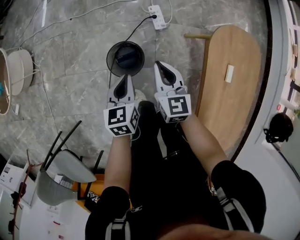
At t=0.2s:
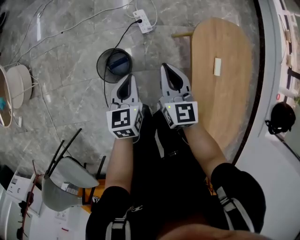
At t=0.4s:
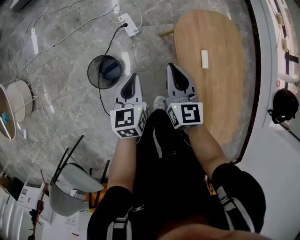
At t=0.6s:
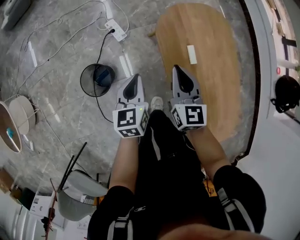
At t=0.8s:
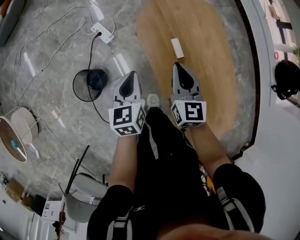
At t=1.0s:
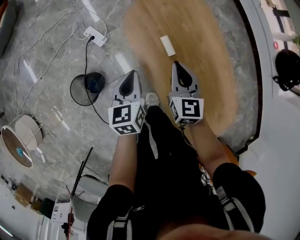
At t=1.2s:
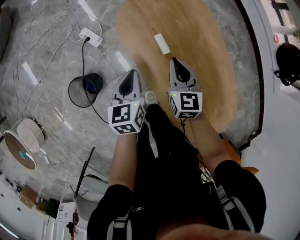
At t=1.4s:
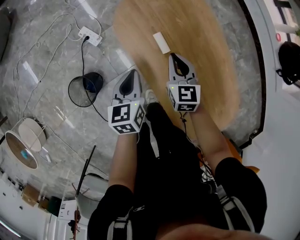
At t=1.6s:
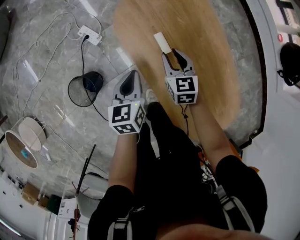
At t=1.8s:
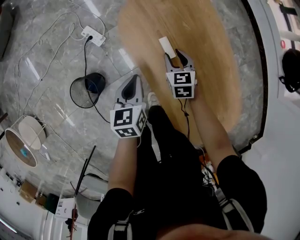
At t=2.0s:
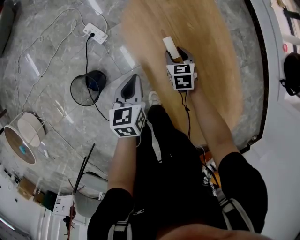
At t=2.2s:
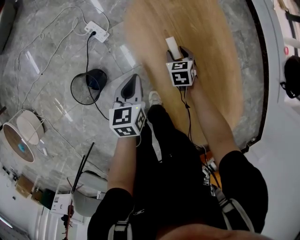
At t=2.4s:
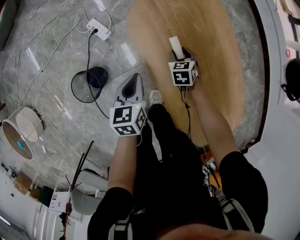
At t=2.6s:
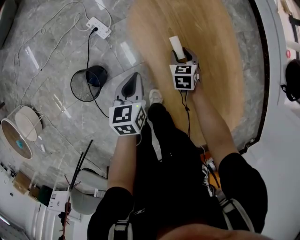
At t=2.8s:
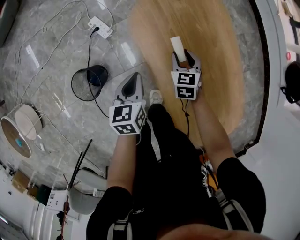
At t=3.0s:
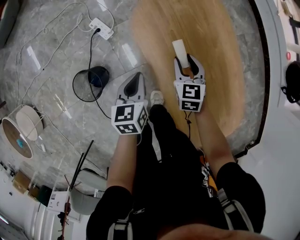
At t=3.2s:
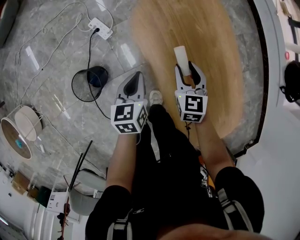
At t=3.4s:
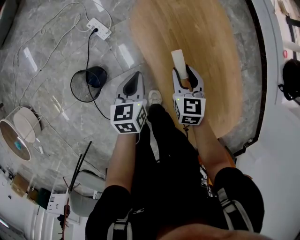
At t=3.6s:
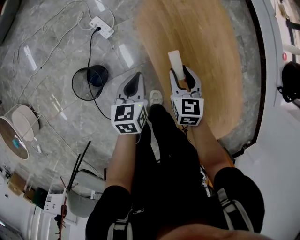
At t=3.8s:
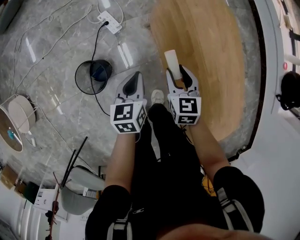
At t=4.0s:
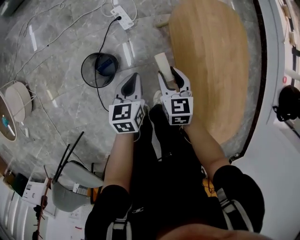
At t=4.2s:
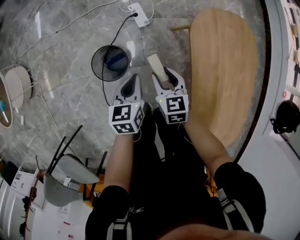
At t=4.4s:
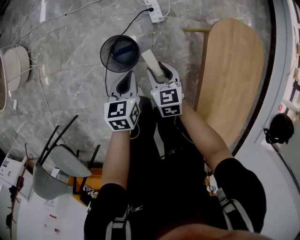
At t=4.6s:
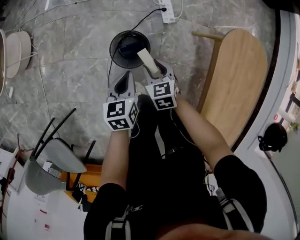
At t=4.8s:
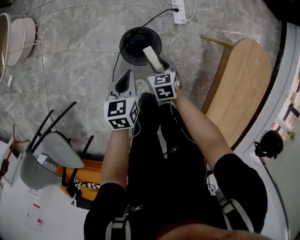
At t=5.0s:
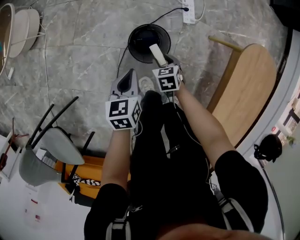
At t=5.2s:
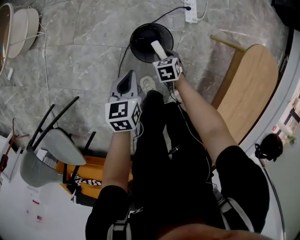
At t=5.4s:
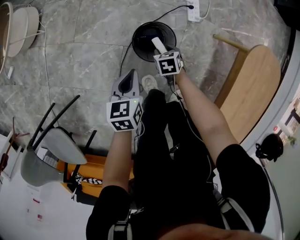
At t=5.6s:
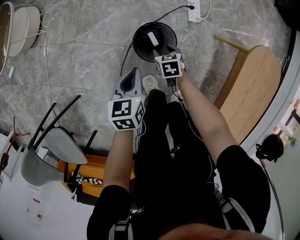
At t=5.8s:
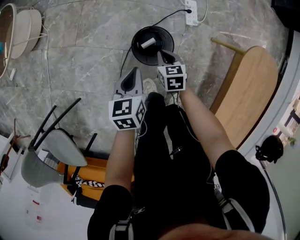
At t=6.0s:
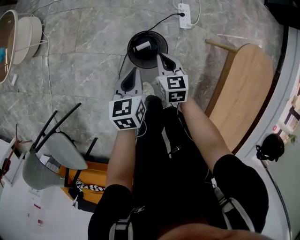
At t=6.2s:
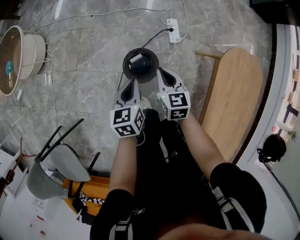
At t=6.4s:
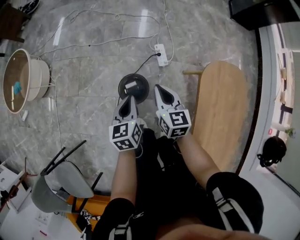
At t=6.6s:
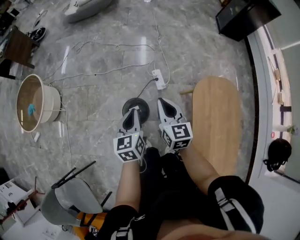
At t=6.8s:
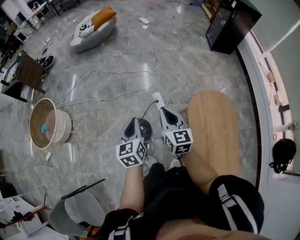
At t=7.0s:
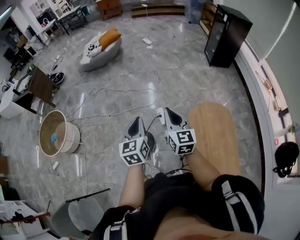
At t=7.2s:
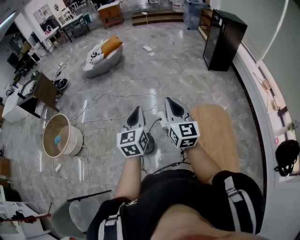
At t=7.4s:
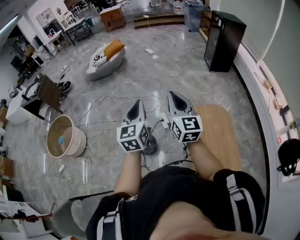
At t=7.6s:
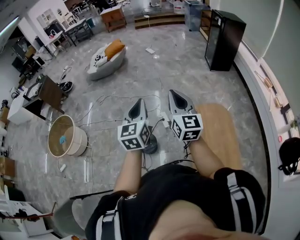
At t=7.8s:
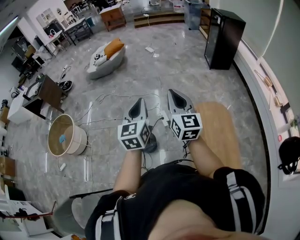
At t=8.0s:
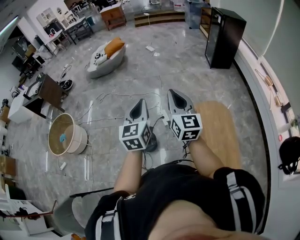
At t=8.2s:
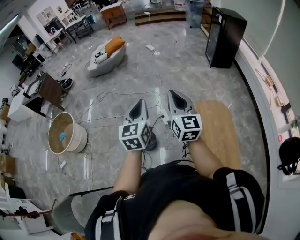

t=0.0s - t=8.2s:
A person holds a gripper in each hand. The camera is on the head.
t=0.0s - t=1.6s: Both grippers are carried about 40 cm. The right gripper turns by some 30 degrees, and opens up, while the left gripper changes its angle by some 30 degrees.
t=1.6s - t=3.2s: The right gripper travels downward and back again, about 10 cm each way.
t=3.2s - t=5.0s: The pair of grippers is taken about 50 cm. The left gripper rotates roughly 40 degrees. The right gripper changes its angle by about 50 degrees.
t=5.0s - t=6.6s: The right gripper shifts approximately 50 cm upward, points its fingers some 40 degrees further upward, and closes, while the left gripper travels upward by roughly 30 cm.
t=6.6s - t=8.2s: Both grippers move upward and to the right, approximately 35 cm. The right gripper swivels approximately 30 degrees, while the left gripper changes its angle by about 30 degrees.

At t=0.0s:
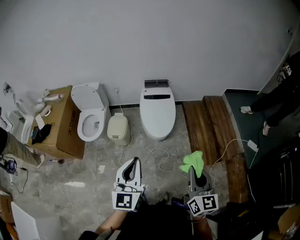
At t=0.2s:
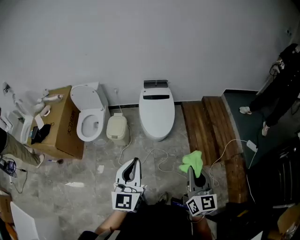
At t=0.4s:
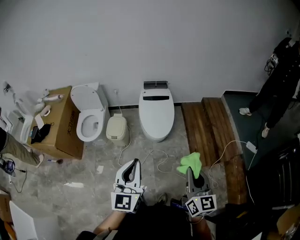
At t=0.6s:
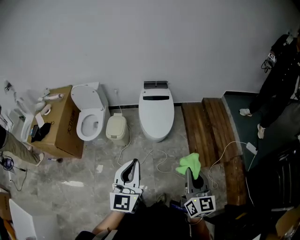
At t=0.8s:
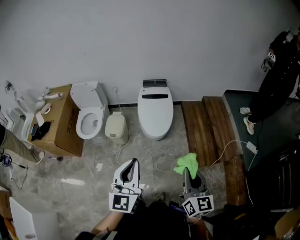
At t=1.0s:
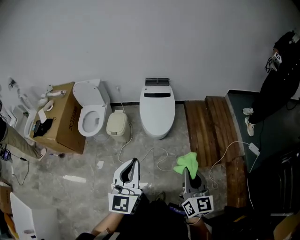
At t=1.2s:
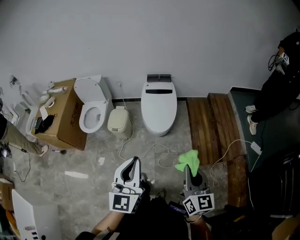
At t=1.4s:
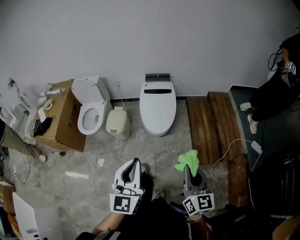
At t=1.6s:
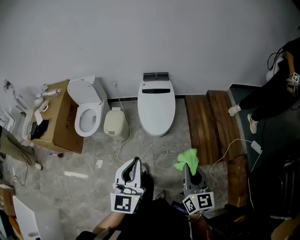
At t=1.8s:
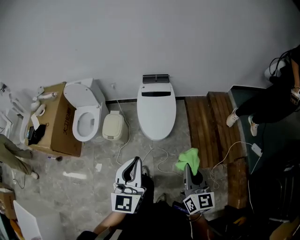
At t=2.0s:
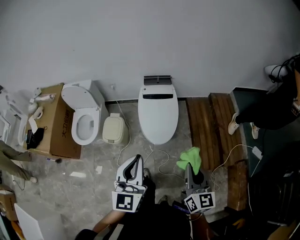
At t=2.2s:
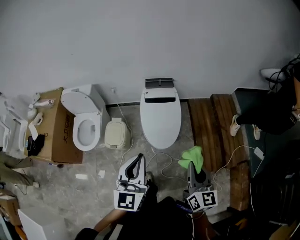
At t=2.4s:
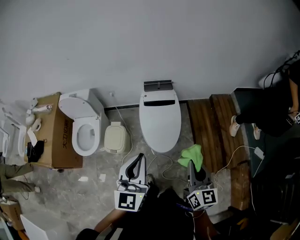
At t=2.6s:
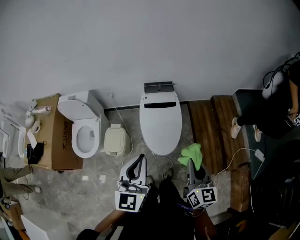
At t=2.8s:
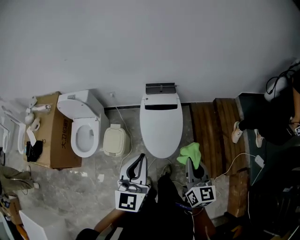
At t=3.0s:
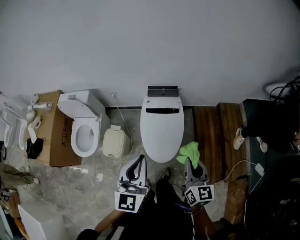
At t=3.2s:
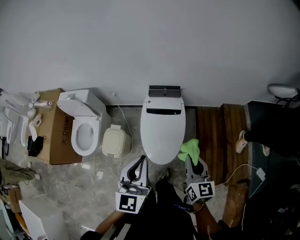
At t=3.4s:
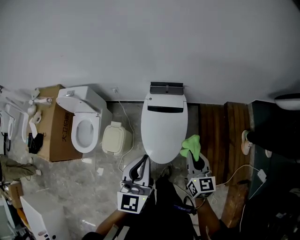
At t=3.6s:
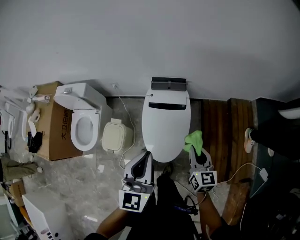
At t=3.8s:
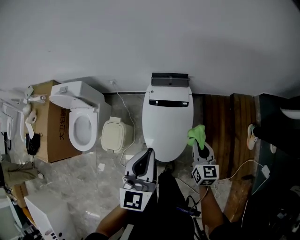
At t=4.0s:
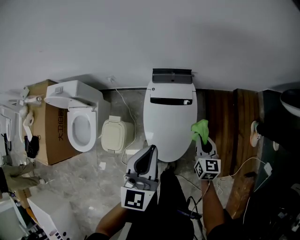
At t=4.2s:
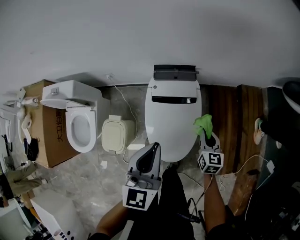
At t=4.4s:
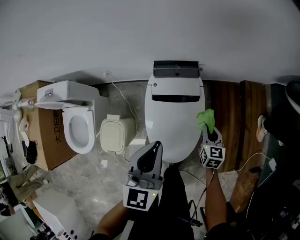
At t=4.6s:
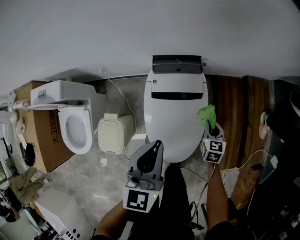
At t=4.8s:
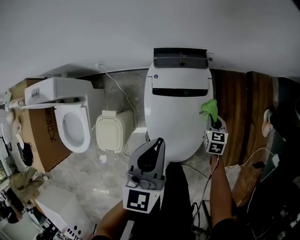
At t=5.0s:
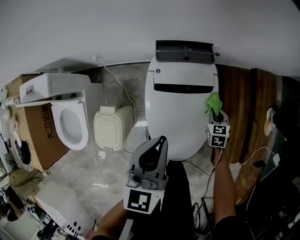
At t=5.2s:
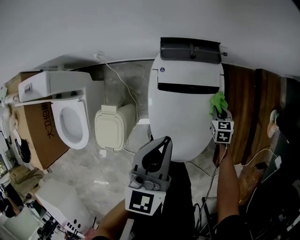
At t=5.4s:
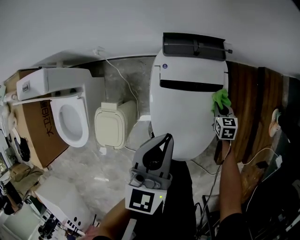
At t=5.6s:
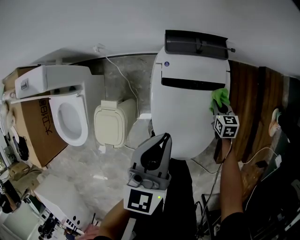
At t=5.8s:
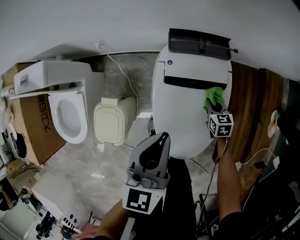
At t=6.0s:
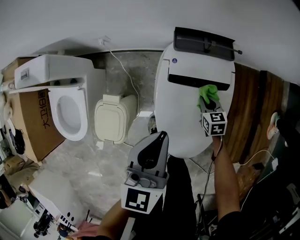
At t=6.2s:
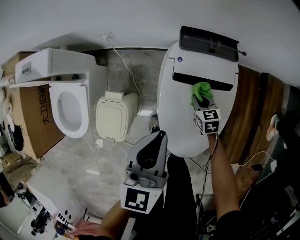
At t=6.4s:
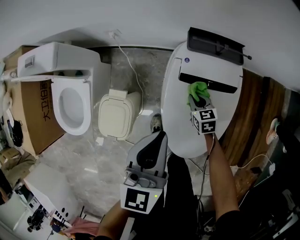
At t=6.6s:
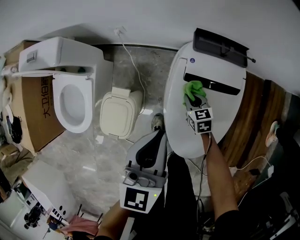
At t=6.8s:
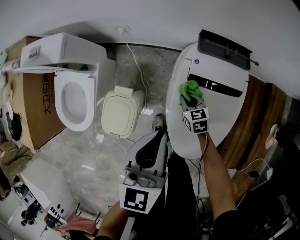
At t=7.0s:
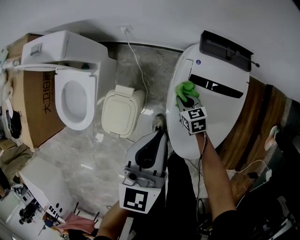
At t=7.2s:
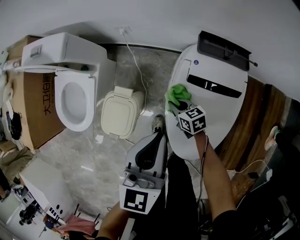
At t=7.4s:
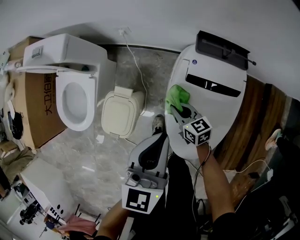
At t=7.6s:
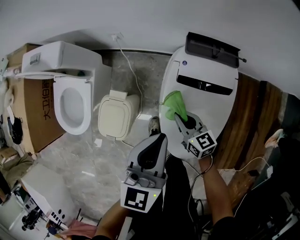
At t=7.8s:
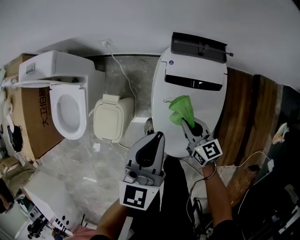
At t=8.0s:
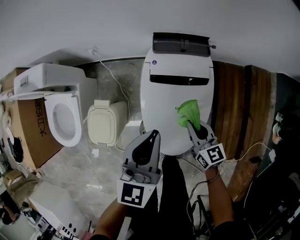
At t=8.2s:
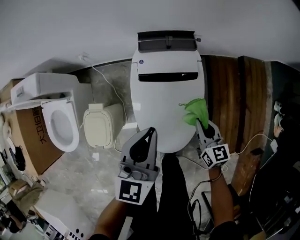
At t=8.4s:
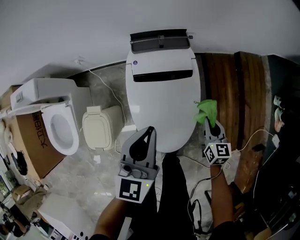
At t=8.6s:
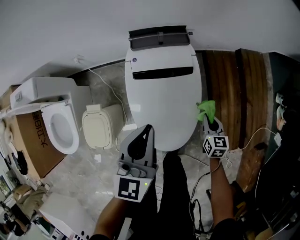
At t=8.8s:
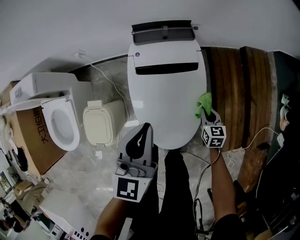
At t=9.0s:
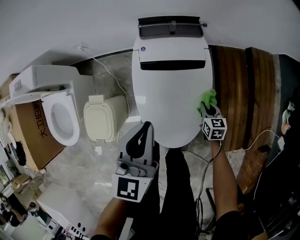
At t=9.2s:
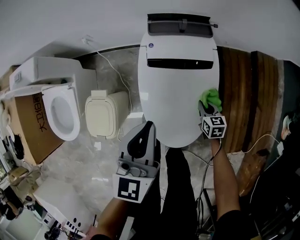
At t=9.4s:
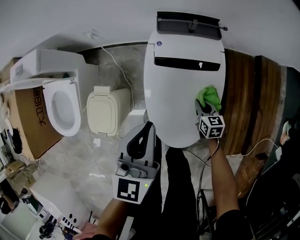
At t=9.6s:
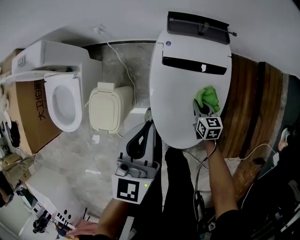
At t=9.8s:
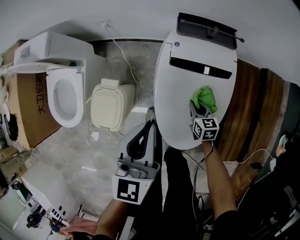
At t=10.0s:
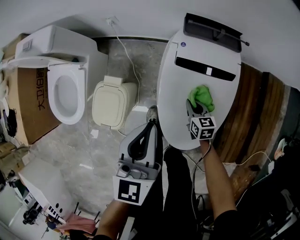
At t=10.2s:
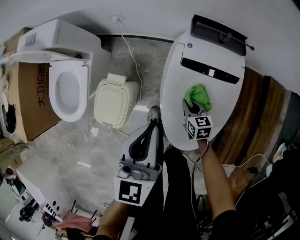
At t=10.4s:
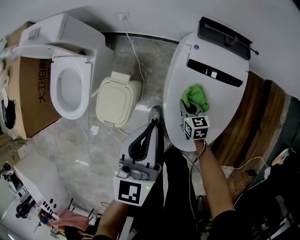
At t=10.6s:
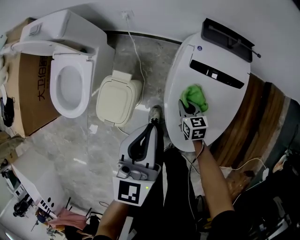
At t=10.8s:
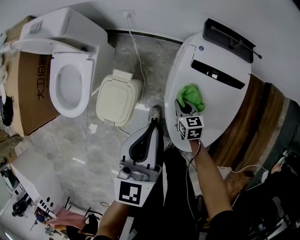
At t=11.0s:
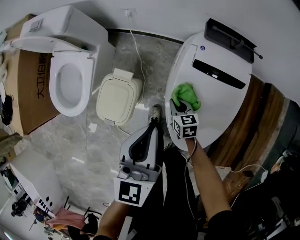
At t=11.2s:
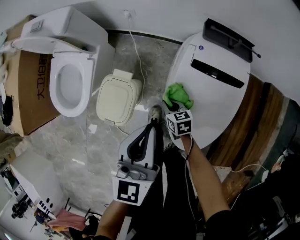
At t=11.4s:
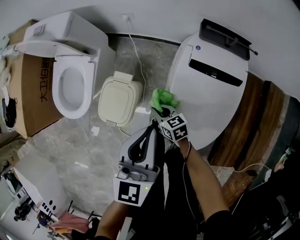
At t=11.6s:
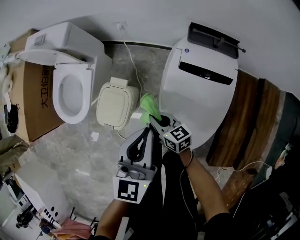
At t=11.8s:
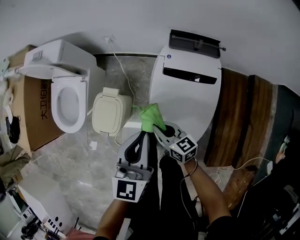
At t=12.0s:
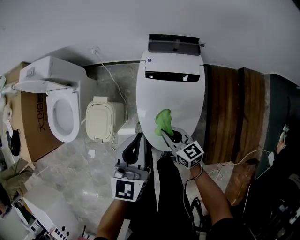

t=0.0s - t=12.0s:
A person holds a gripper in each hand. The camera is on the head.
t=0.0s - t=1.6s: The left gripper travels to the right and forward by roughly 10 cm, while the right gripper heads forward, covering some 5 cm.
t=1.6s - t=3.0s: Both grippers travel together forward, about 40 cm.
t=3.0s - t=4.4s: The right gripper heads downward and forward, covering roughly 50 cm, and rotates some 30 degrees. The left gripper goes about 30 cm forward and downward.
t=4.4s - t=6.0s: The right gripper goes about 25 cm downward and to the left, and swivels some 20 degrees. The left gripper is displaced downward and to the left by approximately 15 cm.
t=6.0s - t=7.6s: The right gripper shifts about 20 cm to the left and upward, and rotates about 30 degrees.
t=7.6s - t=9.0s: The right gripper moves approximately 30 cm, and rotates some 40 degrees. The left gripper changes place by some 10 cm.
t=9.0s - t=10.4s: The left gripper goes some 15 cm to the left; the right gripper shifts approximately 25 cm to the left, and changes its angle by about 20 degrees.
t=10.4s - t=12.0s: The left gripper is displaced to the right, backward and upward by some 15 cm; the right gripper is displaced upward and backward by approximately 20 cm, and swivels about 20 degrees.

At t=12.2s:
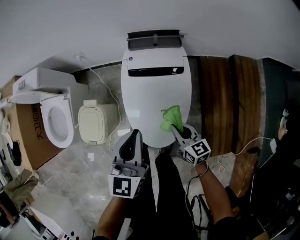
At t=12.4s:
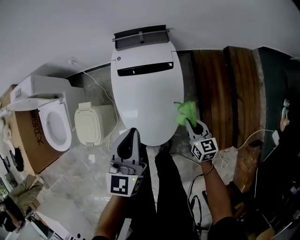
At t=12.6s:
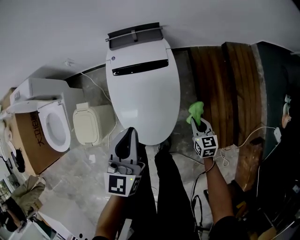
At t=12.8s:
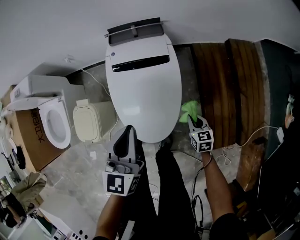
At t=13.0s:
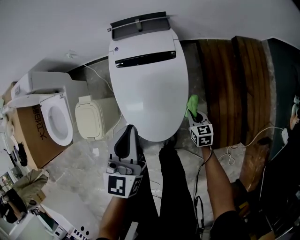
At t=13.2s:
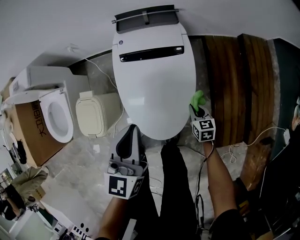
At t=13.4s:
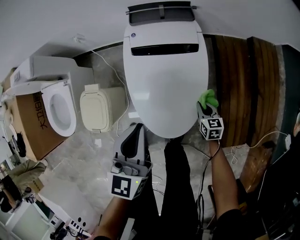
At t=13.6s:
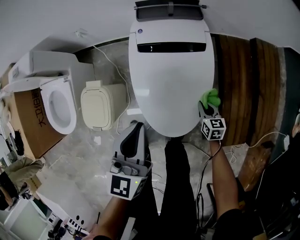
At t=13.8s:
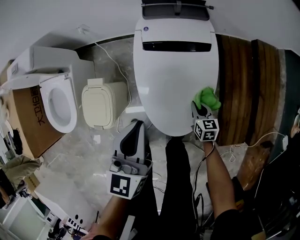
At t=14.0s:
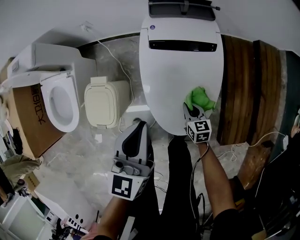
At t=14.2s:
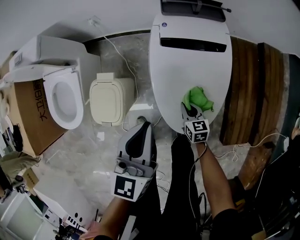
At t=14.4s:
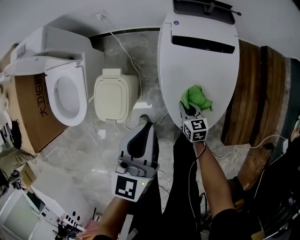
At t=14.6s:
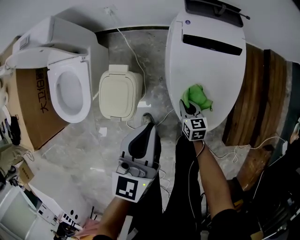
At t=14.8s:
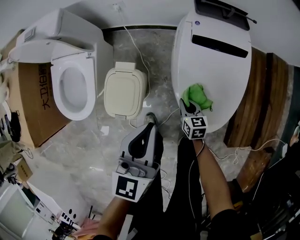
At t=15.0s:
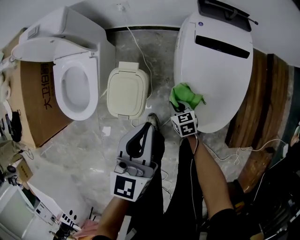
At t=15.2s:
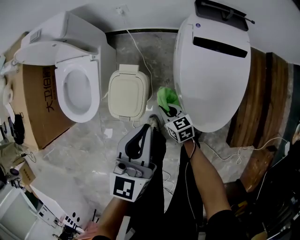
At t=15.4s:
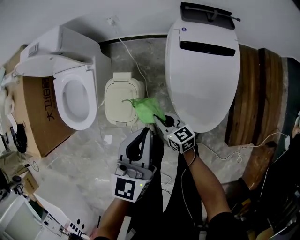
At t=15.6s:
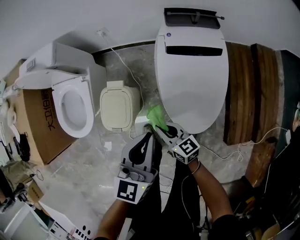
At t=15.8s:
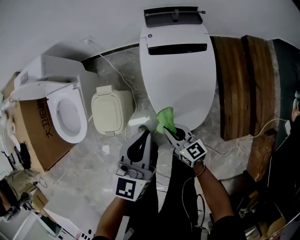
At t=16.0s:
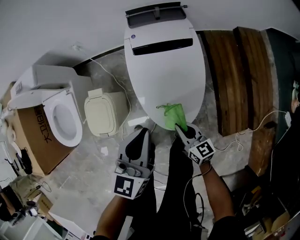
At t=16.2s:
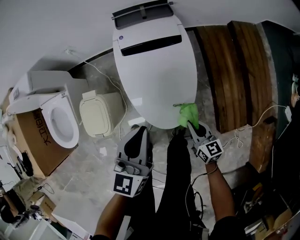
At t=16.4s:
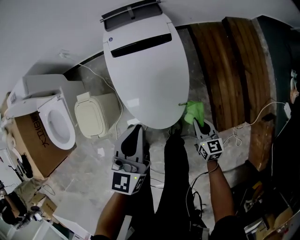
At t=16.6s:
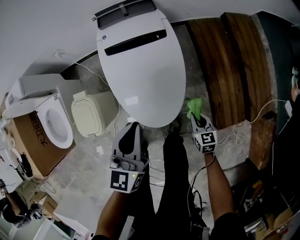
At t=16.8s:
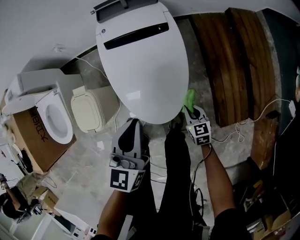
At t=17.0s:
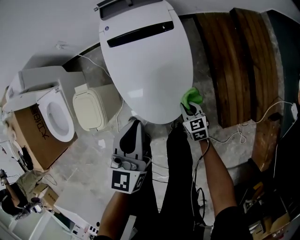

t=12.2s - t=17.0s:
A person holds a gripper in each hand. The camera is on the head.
t=12.2s - t=13.8s: The left gripper travels downward by roughly 5 cm. Meanwhile the right gripper heads downward, covering some 20 cm, and swivels approximately 20 degrees.
t=13.8s - t=15.4s: The right gripper shifts approximately 35 cm to the left, and turns by roughly 30 degrees. Meanwhile the left gripper travels to the left by about 15 cm.
t=15.4s - t=17.0s: The left gripper changes place by about 25 cm; the right gripper ends up about 40 cm from where it was, and turns by about 30 degrees.
